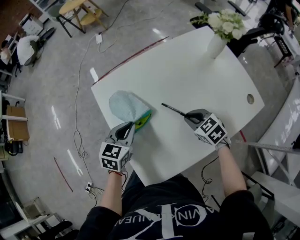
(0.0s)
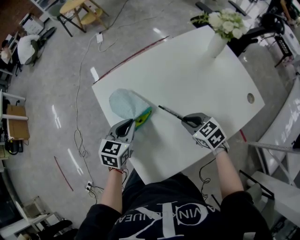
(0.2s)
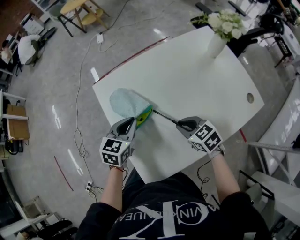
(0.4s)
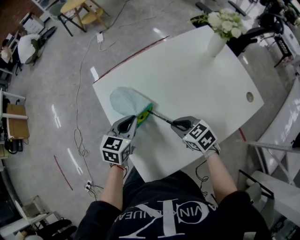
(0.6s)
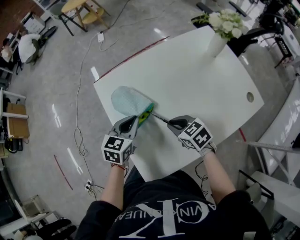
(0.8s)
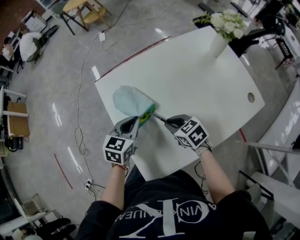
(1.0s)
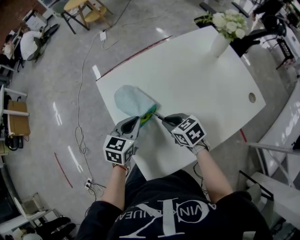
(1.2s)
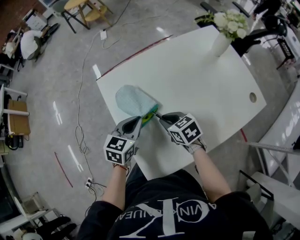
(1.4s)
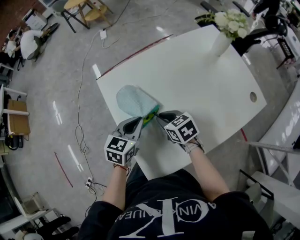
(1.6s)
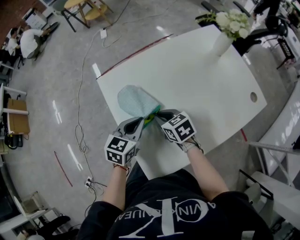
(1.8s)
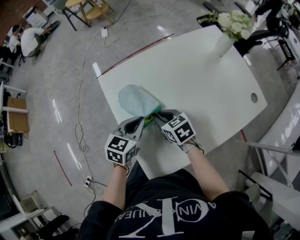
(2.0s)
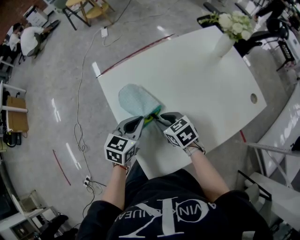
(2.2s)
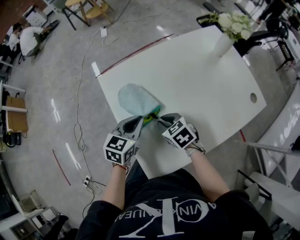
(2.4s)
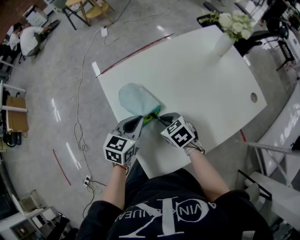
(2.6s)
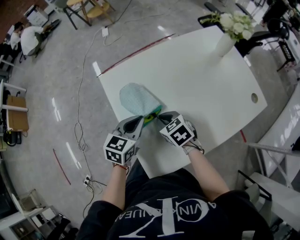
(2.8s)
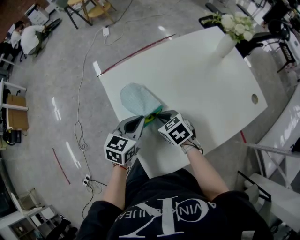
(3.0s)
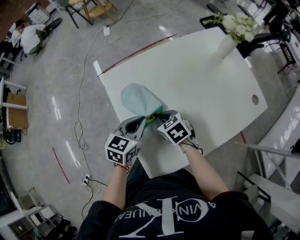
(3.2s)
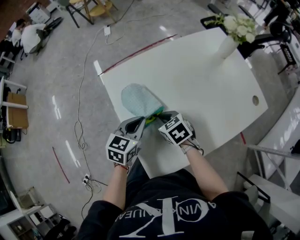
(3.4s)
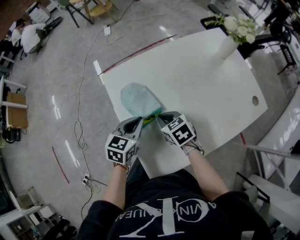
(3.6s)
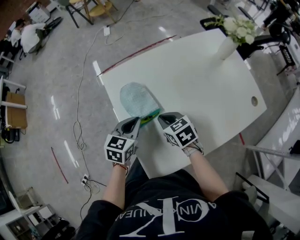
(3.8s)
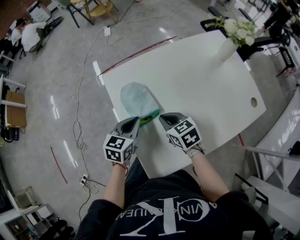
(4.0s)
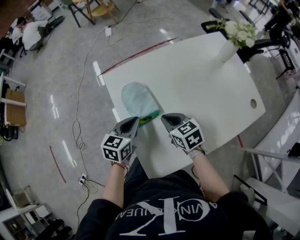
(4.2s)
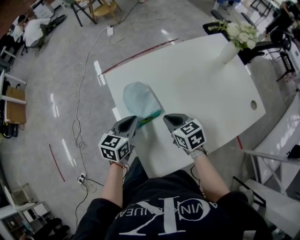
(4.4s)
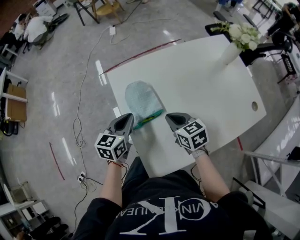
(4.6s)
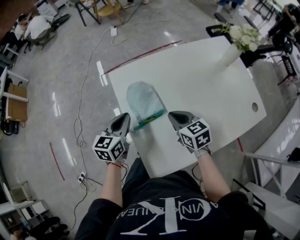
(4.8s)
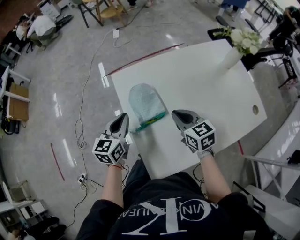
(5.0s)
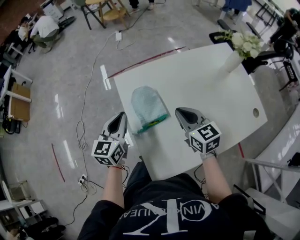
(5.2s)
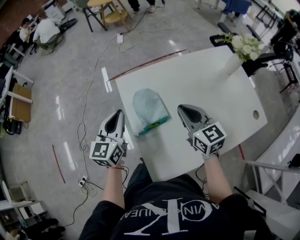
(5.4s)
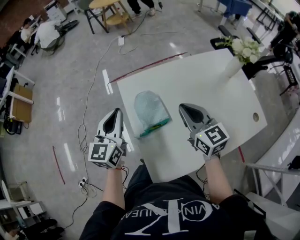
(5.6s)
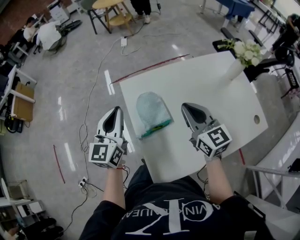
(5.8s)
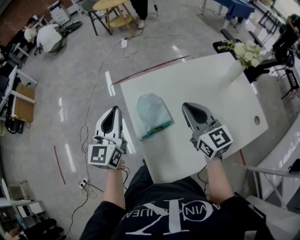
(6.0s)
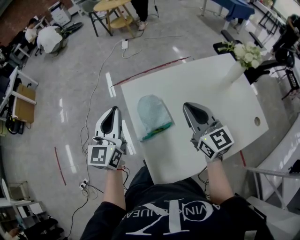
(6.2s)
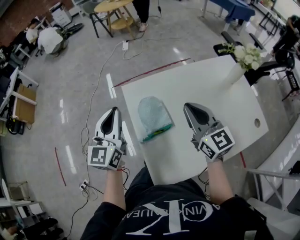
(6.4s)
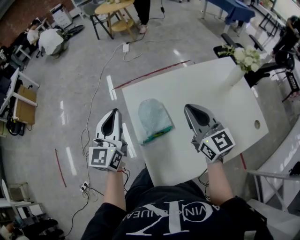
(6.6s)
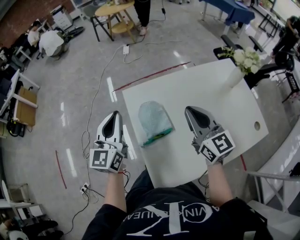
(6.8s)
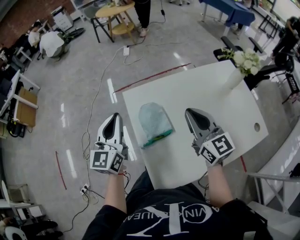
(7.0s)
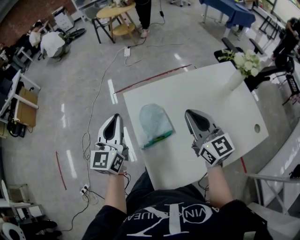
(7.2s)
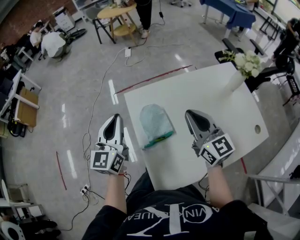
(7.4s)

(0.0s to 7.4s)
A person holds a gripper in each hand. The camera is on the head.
0.0s - 1.4s: The right gripper is displaced to the left by about 15 cm.
1.4s - 4.4s: There are only small adjustments of the grippers.
4.4s - 6.0s: The right gripper moves upward, approximately 20 cm, and points its fingers roughly 30 degrees further upward. The left gripper goes about 20 cm upward and to the left, and changes its angle by some 40 degrees.
6.0s - 7.4s: The grippers stay close to where they were, moving slightly.

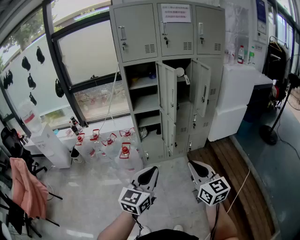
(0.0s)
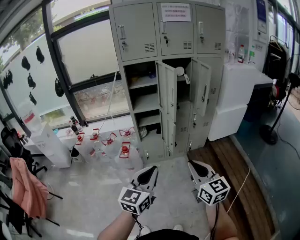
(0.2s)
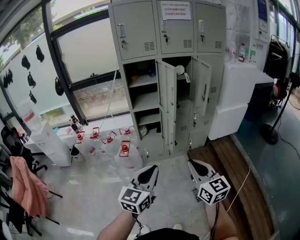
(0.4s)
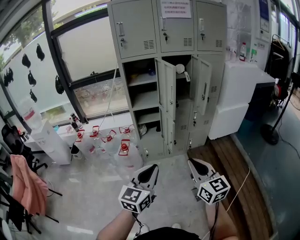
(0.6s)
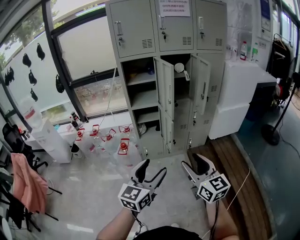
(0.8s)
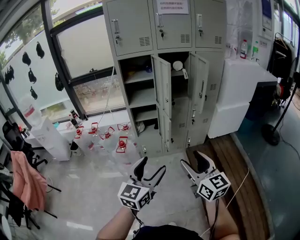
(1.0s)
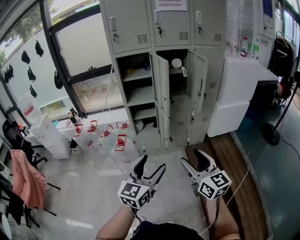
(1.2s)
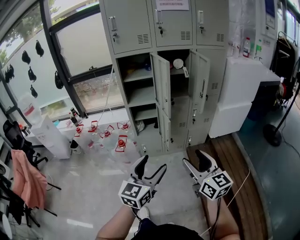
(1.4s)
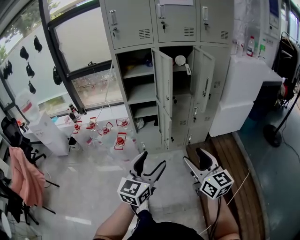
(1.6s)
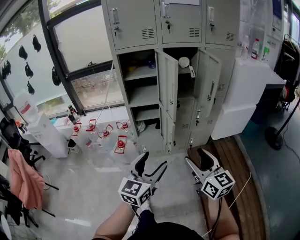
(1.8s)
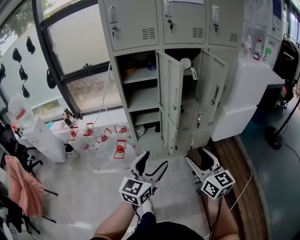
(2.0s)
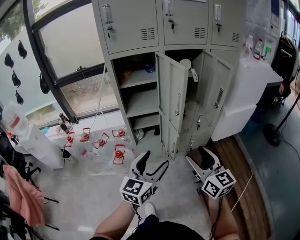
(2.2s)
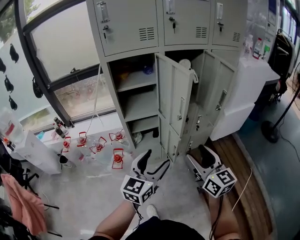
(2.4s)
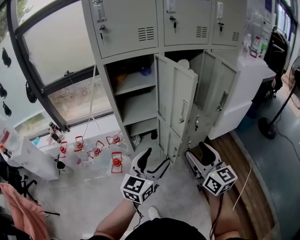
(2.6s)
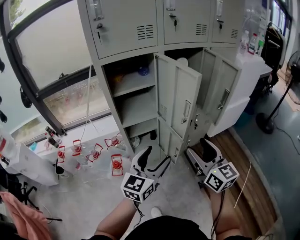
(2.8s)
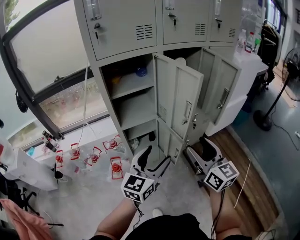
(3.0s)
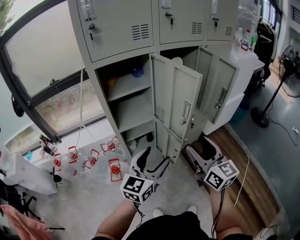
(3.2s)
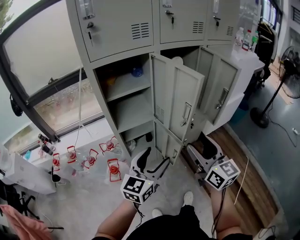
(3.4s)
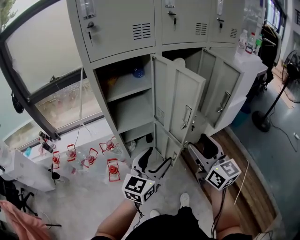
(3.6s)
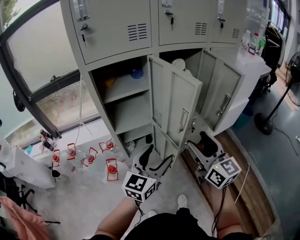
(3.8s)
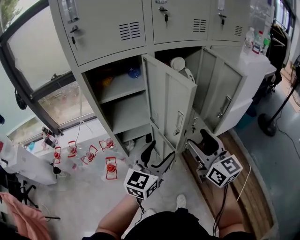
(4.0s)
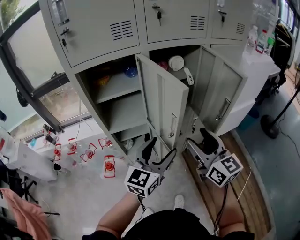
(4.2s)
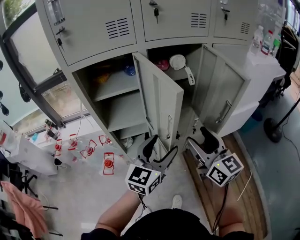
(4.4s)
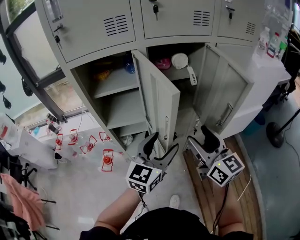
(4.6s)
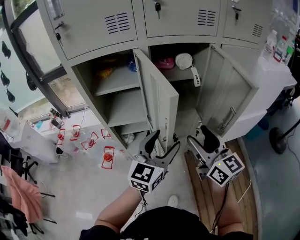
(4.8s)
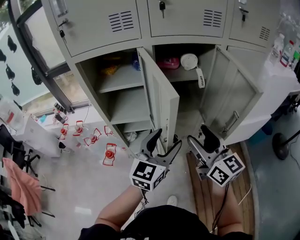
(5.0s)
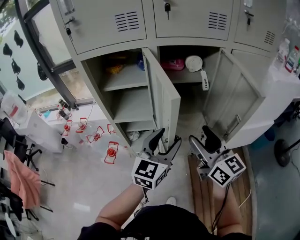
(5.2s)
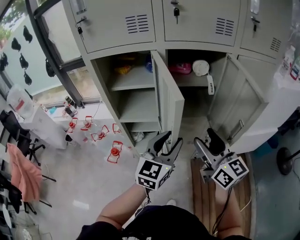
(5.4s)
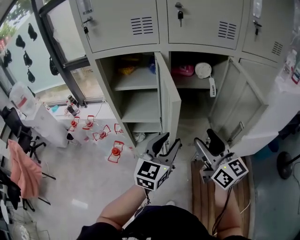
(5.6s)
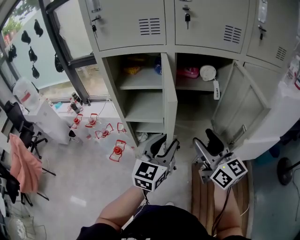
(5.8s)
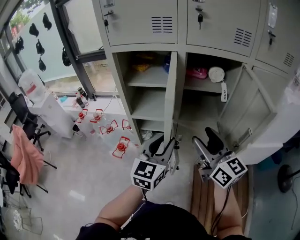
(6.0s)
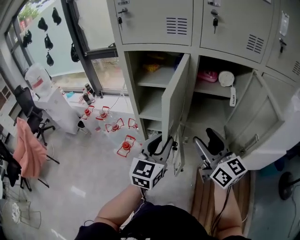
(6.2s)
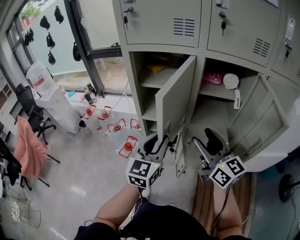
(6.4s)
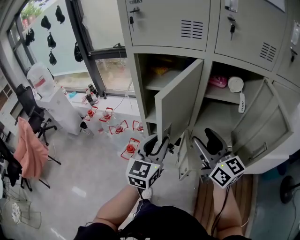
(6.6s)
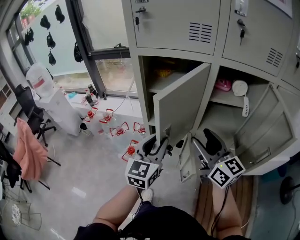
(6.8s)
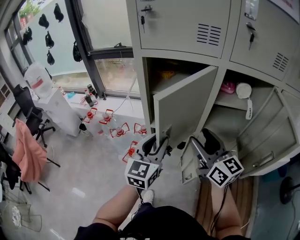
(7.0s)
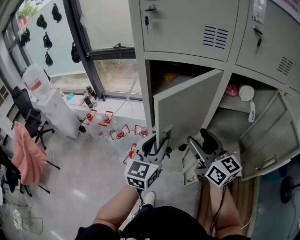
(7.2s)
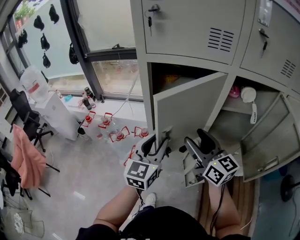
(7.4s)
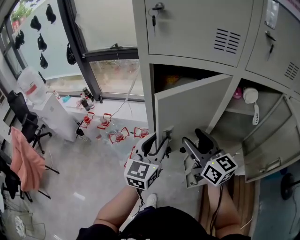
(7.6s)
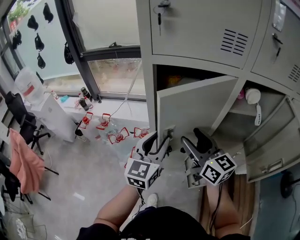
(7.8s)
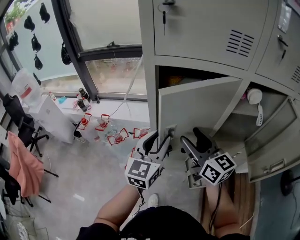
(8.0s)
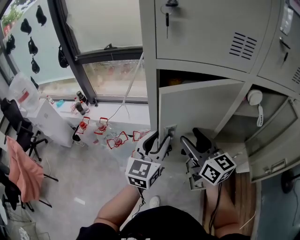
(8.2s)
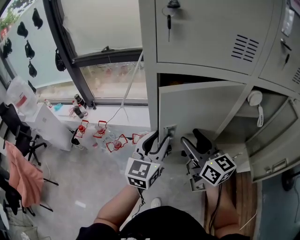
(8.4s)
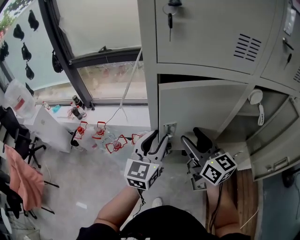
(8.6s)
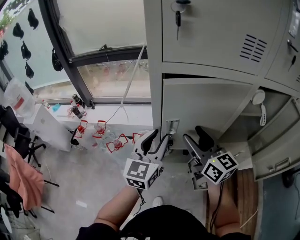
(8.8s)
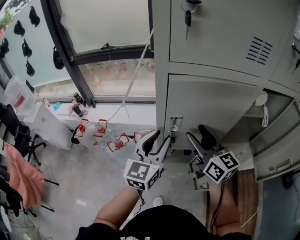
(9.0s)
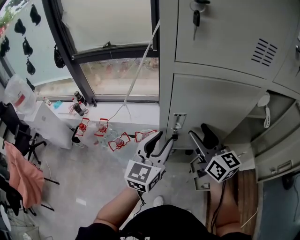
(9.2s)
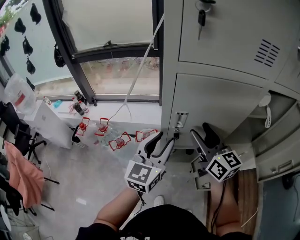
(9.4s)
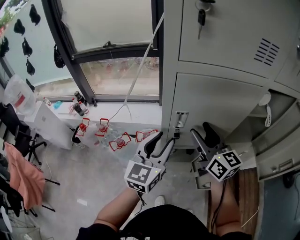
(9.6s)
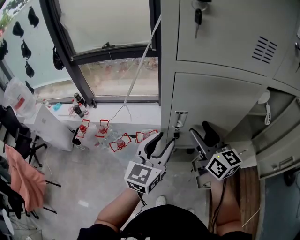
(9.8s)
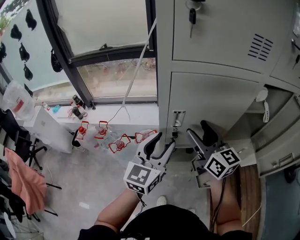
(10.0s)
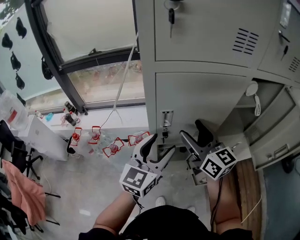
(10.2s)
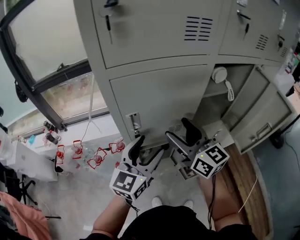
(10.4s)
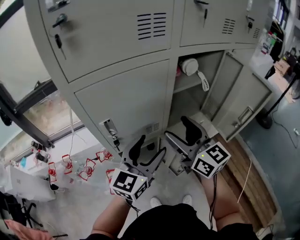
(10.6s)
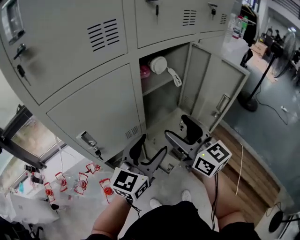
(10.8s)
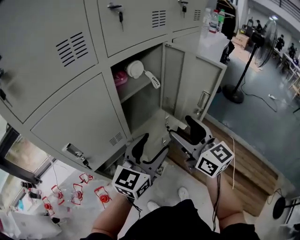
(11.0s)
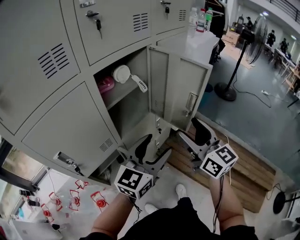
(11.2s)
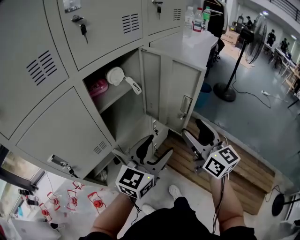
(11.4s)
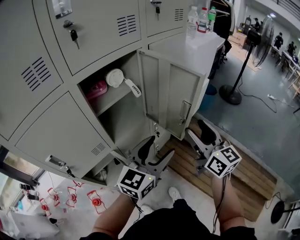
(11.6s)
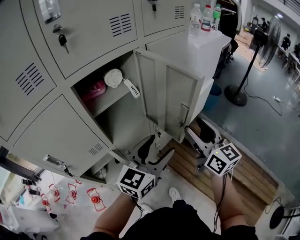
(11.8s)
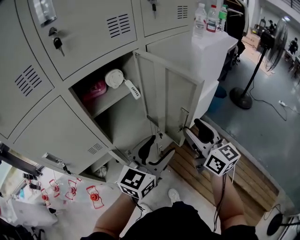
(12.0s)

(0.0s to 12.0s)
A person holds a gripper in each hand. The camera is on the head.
0.0s - 1.6s: Both grippers travel together forward and to the right, approximately 10 cm. The right gripper opens; the left gripper opens.
1.6s - 3.0s: Both grippers travel together forward and to the left, about 30 cm.
3.0s - 4.4s: The two grippers go approximately 15 cm forward and to the right.
4.4s - 6.0s: The right gripper ends up some 5 cm from where it was, and turns by roughly 20 degrees. Meanwhile the left gripper swivels approximately 30 degrees, and closes up.
6.0s - 7.6s: The two grippers go approximately 25 cm to the left and forward.
7.6s - 9.0s: The grippers both shift forward by approximately 10 cm.
9.0s - 10.4s: The left gripper goes approximately 5 cm to the right, and opens. Meanwhile the right gripper moves about 5 cm.
10.4s - 12.0s: Both grippers are carried roughly 40 cm. The left gripper turns by some 30 degrees. The right gripper swivels approximately 30 degrees.

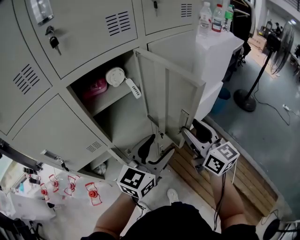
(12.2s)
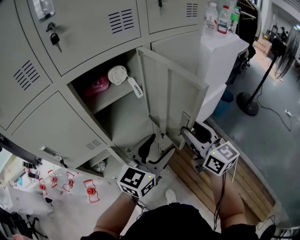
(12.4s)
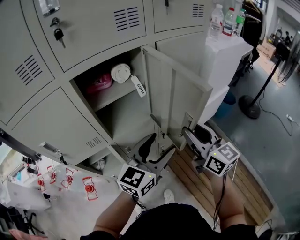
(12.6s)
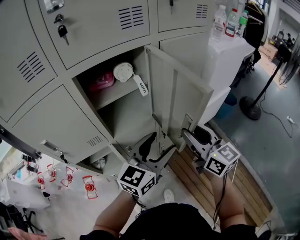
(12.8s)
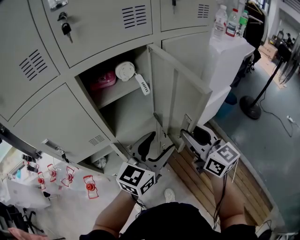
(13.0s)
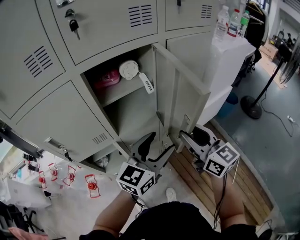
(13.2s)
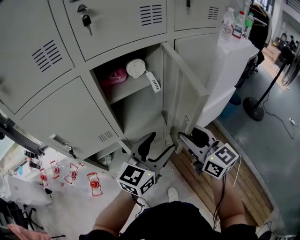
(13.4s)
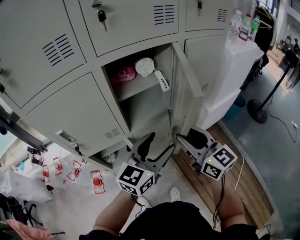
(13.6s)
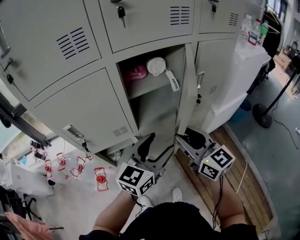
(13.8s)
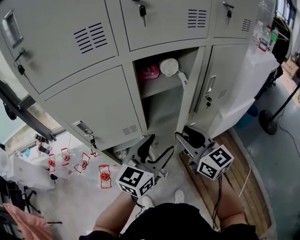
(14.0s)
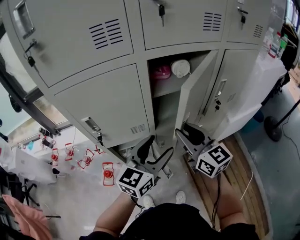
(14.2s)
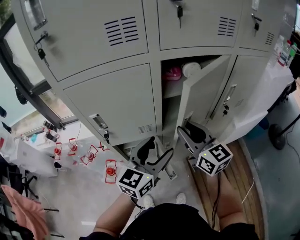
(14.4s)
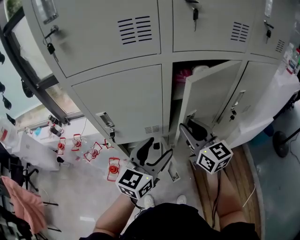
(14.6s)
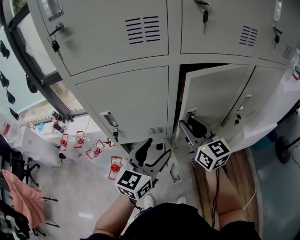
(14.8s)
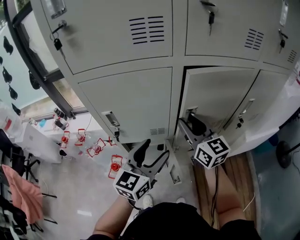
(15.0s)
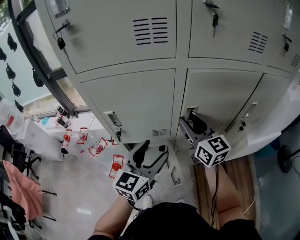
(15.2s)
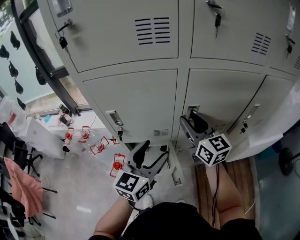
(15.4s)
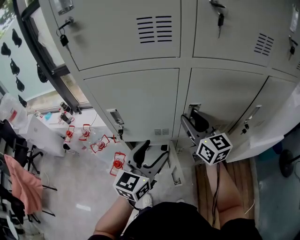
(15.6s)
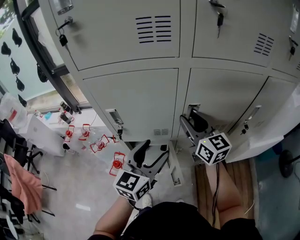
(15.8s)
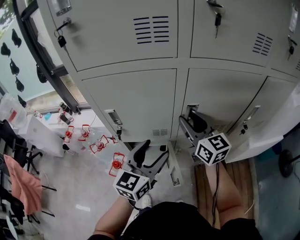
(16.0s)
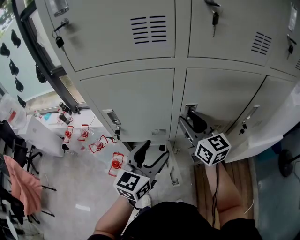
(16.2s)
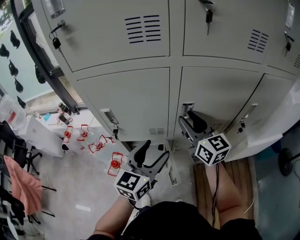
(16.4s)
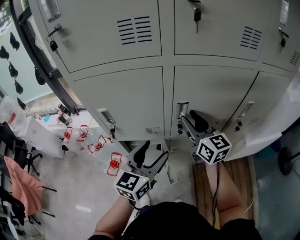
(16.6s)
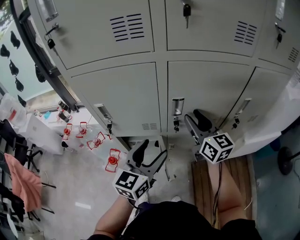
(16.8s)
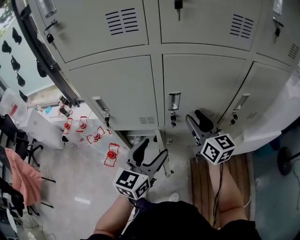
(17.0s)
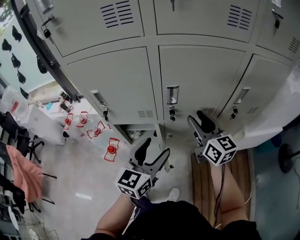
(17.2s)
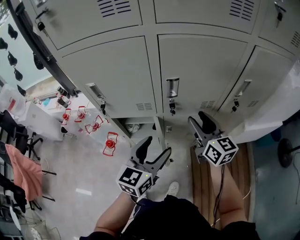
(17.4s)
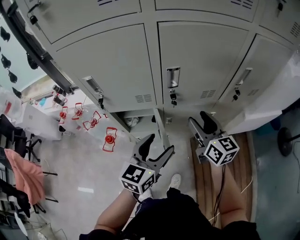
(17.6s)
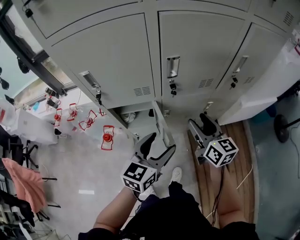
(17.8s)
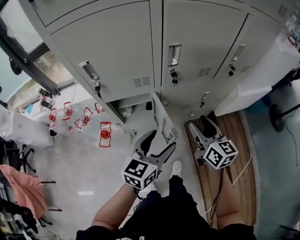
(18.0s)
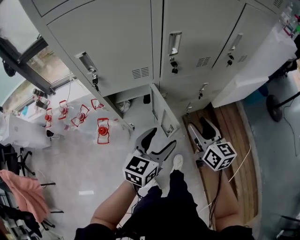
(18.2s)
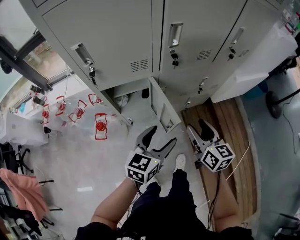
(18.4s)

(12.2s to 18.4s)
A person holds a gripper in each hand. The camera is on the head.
12.2s - 13.8s: Both grippers travel together to the left, about 15 cm. The right gripper swivels about 20 degrees.
13.8s - 15.4s: The left gripper travels to the left by approximately 15 cm, and swivels roughly 30 degrees. Meanwhile the right gripper travels forward and to the left by about 20 cm.
15.4s - 16.8s: The two grippers go approximately 5 cm to the right.
16.8s - 18.4s: The left gripper is displaced downward and backward by roughly 20 cm, and turns by about 30 degrees, while the right gripper travels backward and downward by some 30 cm, and changes its angle by some 30 degrees.
